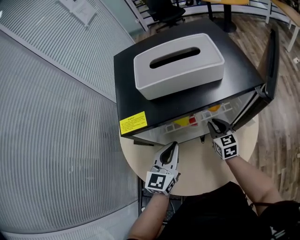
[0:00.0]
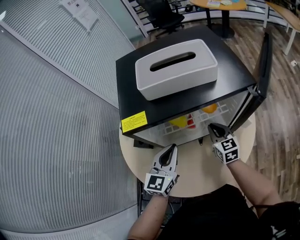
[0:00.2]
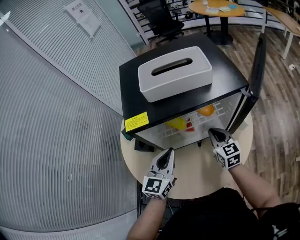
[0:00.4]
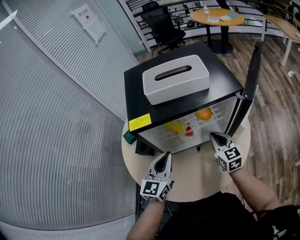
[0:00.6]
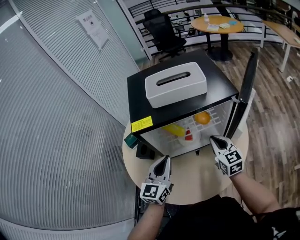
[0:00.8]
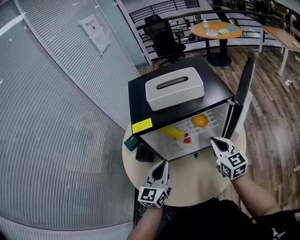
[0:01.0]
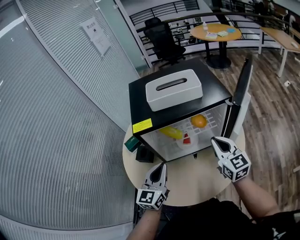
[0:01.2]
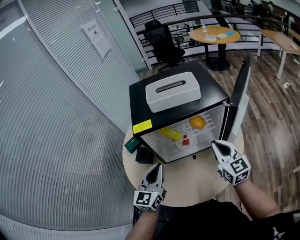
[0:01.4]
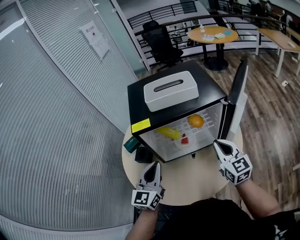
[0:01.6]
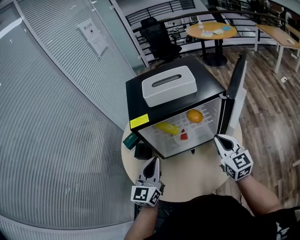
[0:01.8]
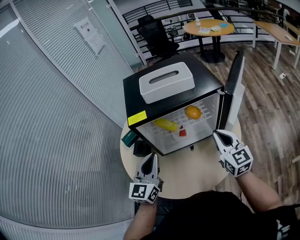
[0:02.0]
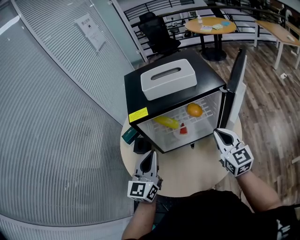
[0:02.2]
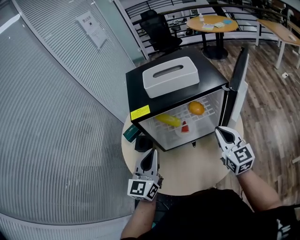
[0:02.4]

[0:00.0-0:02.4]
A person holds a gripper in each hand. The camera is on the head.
0:00.0 to 0:01.2: The right gripper goes roughly 25 cm upward and backward. The left gripper is displaced backward and upward by about 15 cm.
0:01.2 to 0:02.4: The left gripper travels upward by roughly 5 cm.

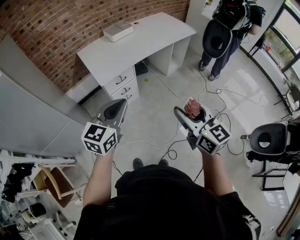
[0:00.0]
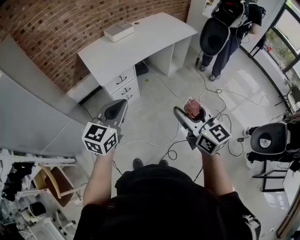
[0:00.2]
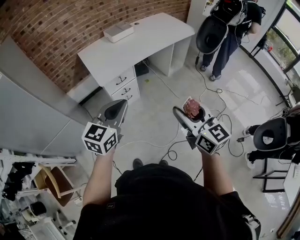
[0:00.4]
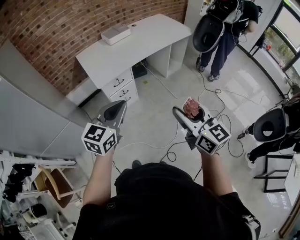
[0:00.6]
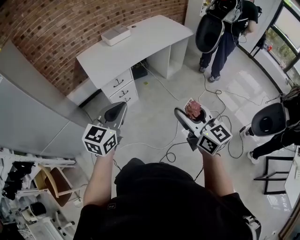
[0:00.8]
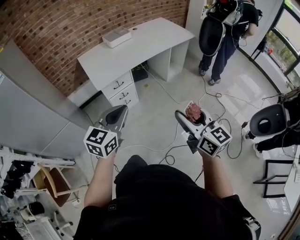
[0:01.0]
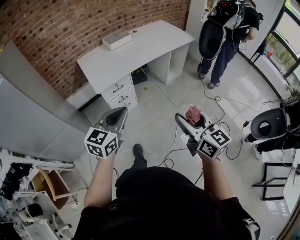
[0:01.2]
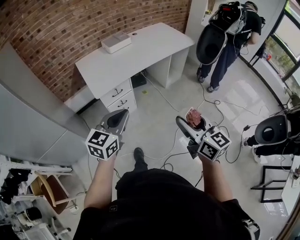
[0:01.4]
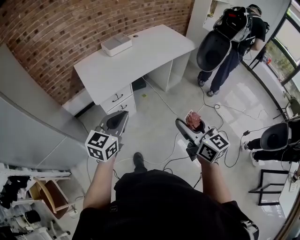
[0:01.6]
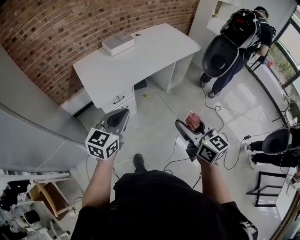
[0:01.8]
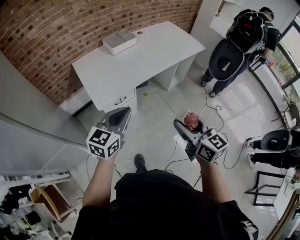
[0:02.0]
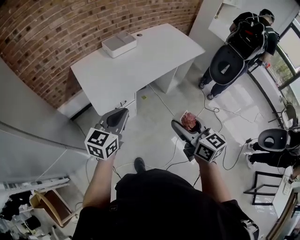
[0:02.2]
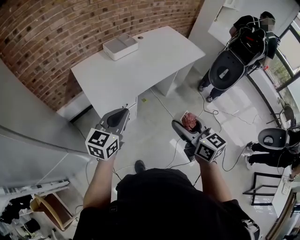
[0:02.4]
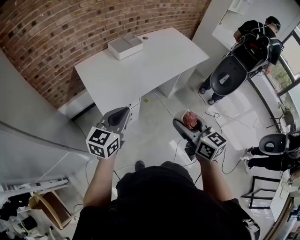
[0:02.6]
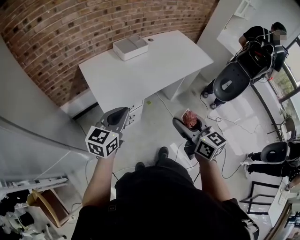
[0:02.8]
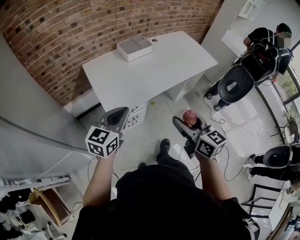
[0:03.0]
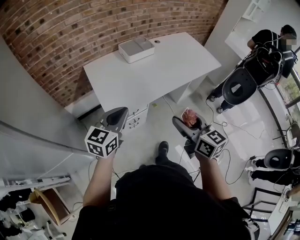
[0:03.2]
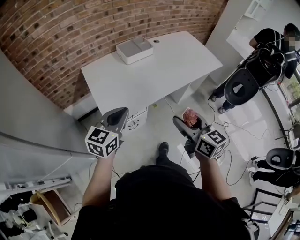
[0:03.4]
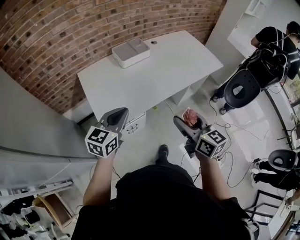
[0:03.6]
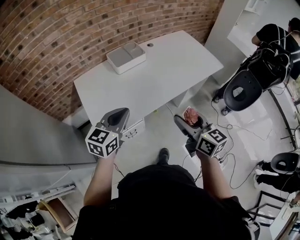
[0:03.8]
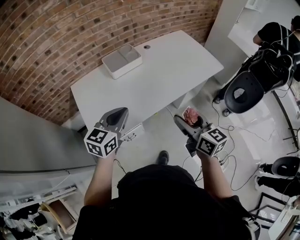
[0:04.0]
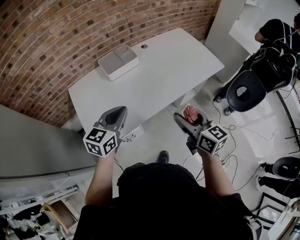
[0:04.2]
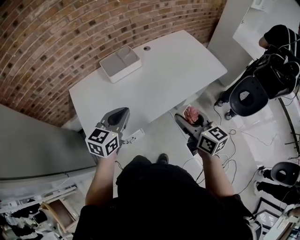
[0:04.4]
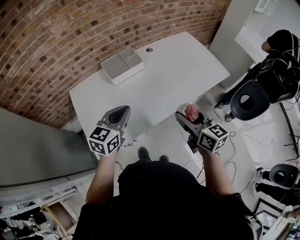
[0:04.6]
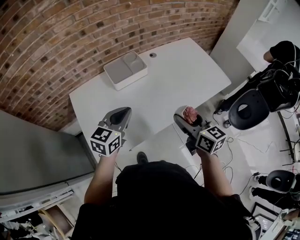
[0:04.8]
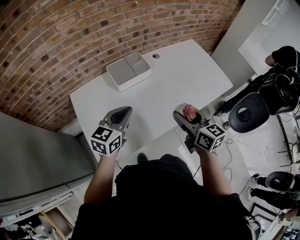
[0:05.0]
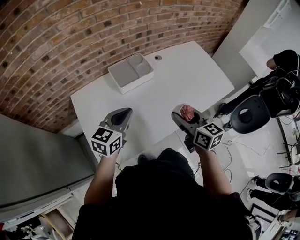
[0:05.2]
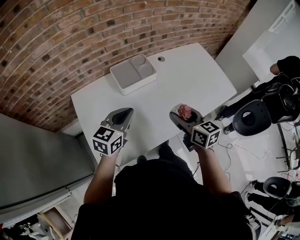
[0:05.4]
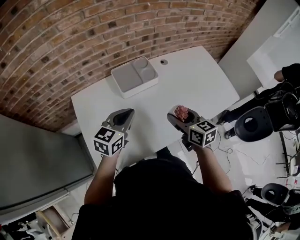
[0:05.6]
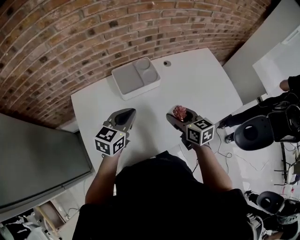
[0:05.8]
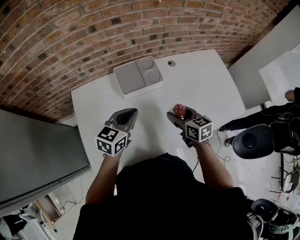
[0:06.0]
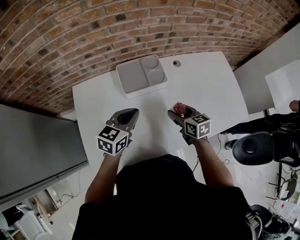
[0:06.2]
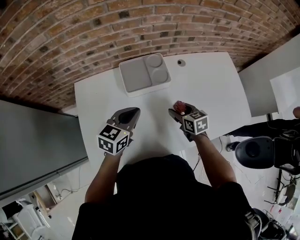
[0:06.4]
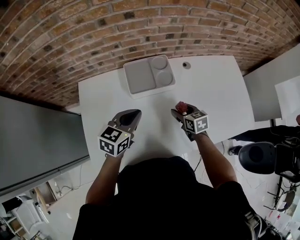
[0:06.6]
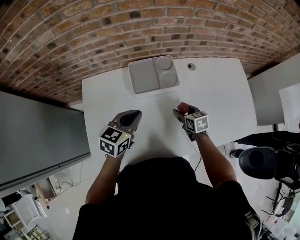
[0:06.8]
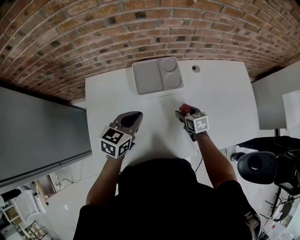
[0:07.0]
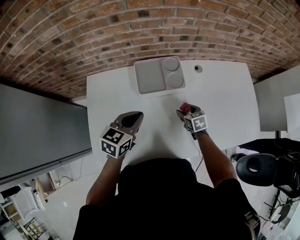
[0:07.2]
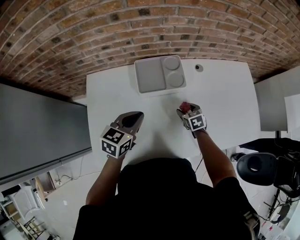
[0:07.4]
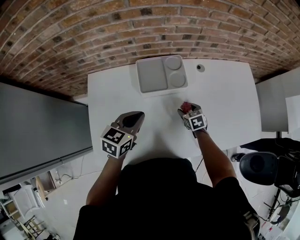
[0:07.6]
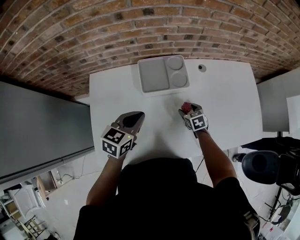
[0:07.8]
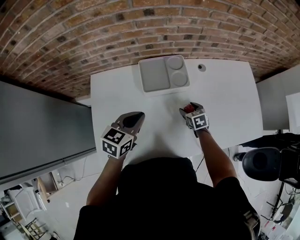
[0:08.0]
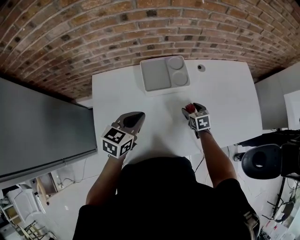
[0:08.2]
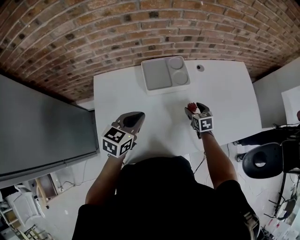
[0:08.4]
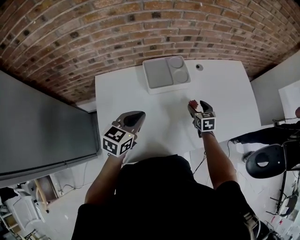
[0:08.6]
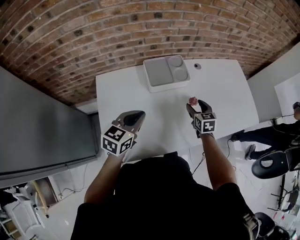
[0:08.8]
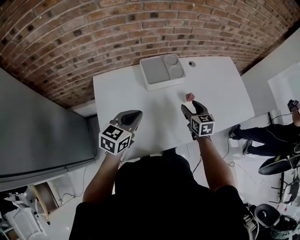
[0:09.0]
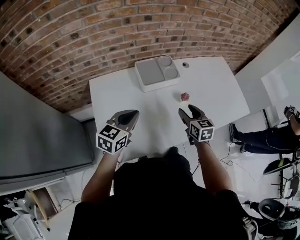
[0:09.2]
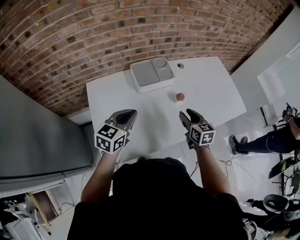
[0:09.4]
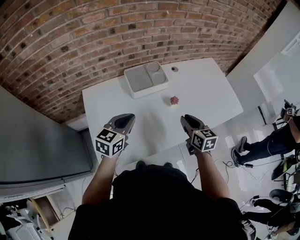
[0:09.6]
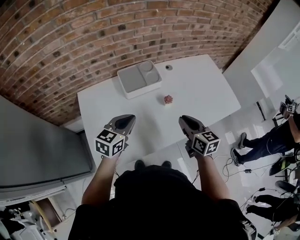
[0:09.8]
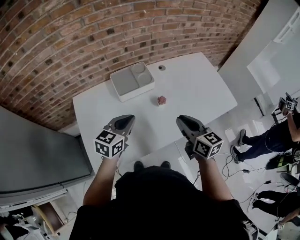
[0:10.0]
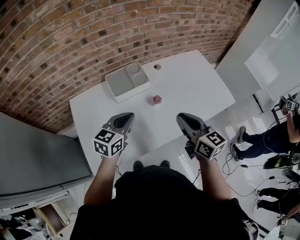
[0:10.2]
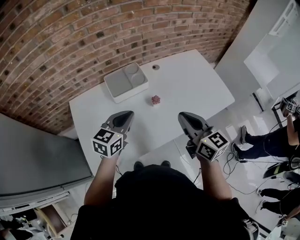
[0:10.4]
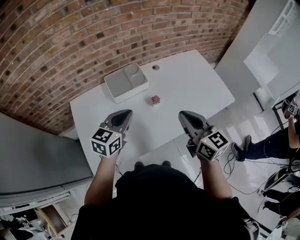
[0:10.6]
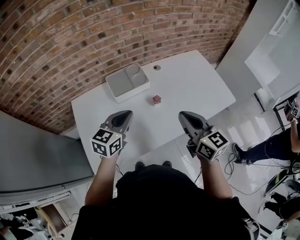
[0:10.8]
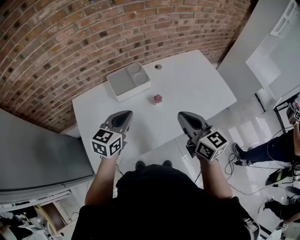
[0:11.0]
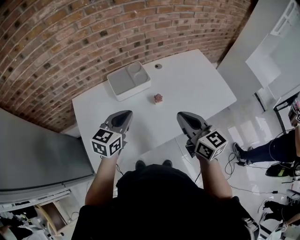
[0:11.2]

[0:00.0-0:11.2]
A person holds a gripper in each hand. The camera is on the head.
0:00.0 to 0:01.6: Both grippers move forward, some 10 cm.
0:01.6 to 0:03.2: The two grippers go some 25 cm forward and to the left.
0:03.2 to 0:04.8: The grippers both shift forward by roughly 30 cm.
0:04.8 to 0:06.4: The right gripper shifts roughly 30 cm forward and downward, and turns by about 30 degrees, while the left gripper heads forward and downward, covering roughly 20 cm.
0:06.4 to 0:08.0: The right gripper shifts approximately 10 cm downward.
0:08.0 to 0:09.6: The left gripper goes some 10 cm backward. Meanwhile the right gripper heads upward and backward, covering some 25 cm, changes its angle by approximately 30 degrees, and closes its fingers.
0:09.6 to 0:11.2: The right gripper is displaced upward by approximately 15 cm. Meanwhile the left gripper travels to the right by some 10 cm.

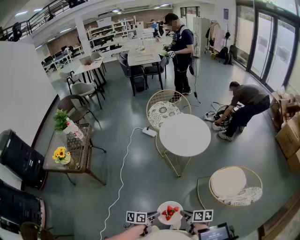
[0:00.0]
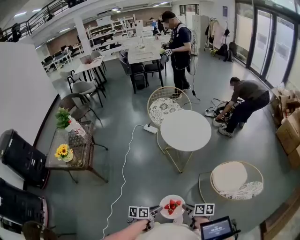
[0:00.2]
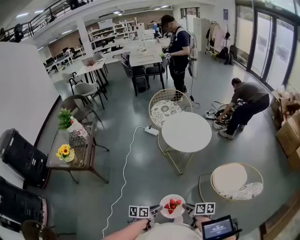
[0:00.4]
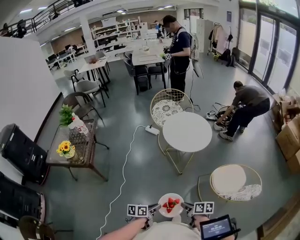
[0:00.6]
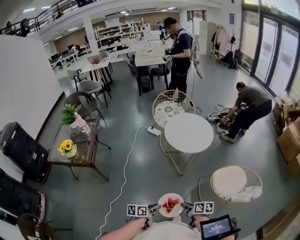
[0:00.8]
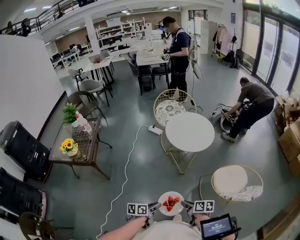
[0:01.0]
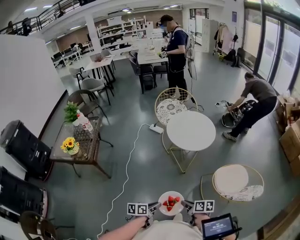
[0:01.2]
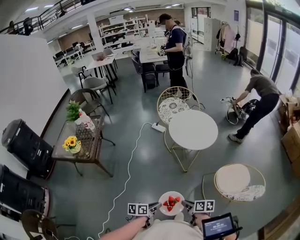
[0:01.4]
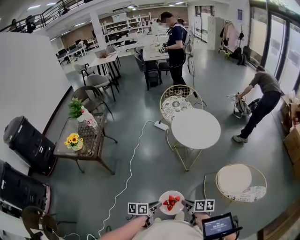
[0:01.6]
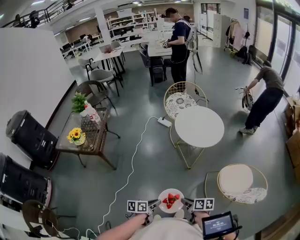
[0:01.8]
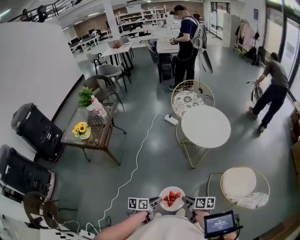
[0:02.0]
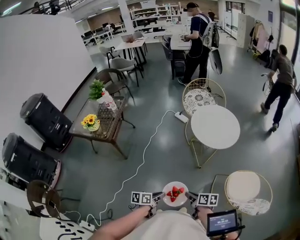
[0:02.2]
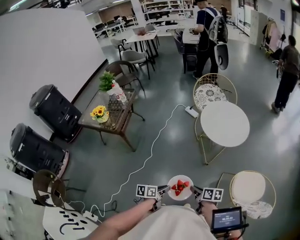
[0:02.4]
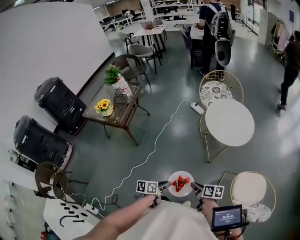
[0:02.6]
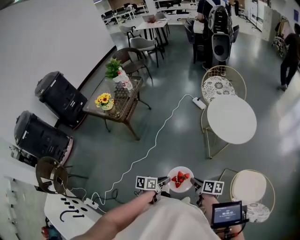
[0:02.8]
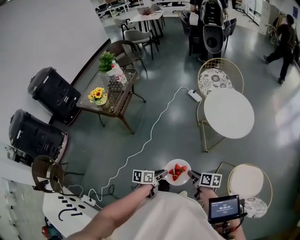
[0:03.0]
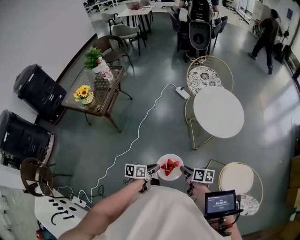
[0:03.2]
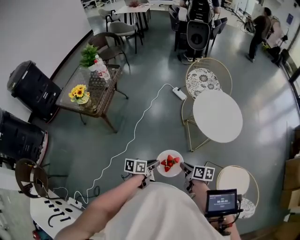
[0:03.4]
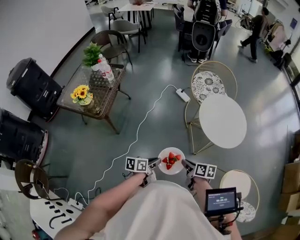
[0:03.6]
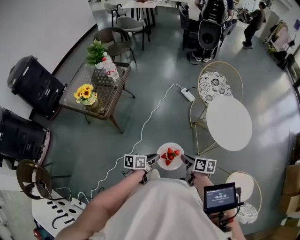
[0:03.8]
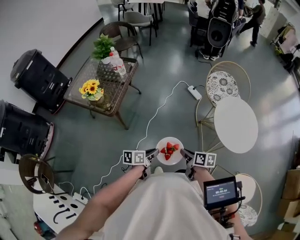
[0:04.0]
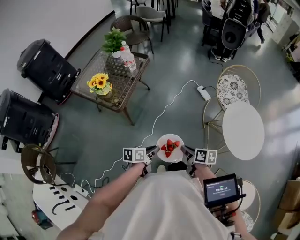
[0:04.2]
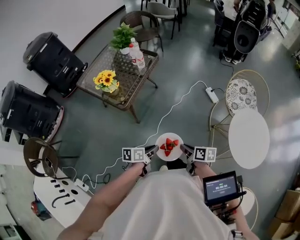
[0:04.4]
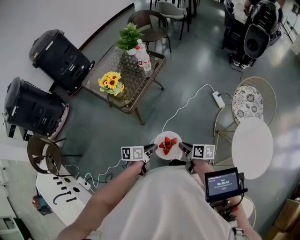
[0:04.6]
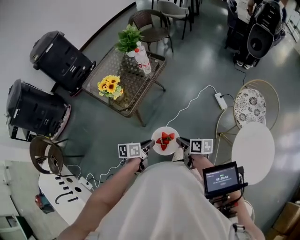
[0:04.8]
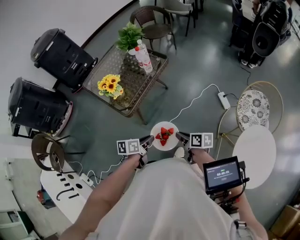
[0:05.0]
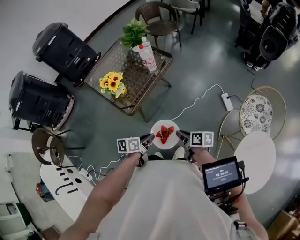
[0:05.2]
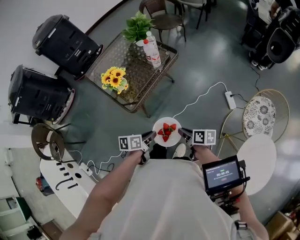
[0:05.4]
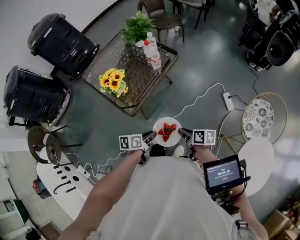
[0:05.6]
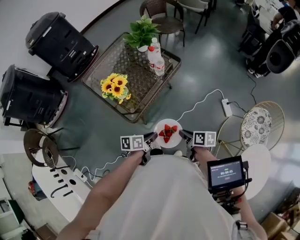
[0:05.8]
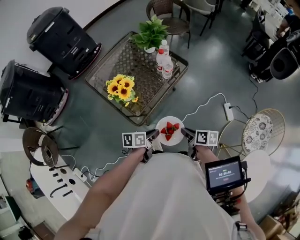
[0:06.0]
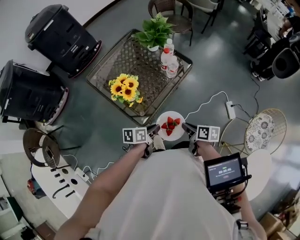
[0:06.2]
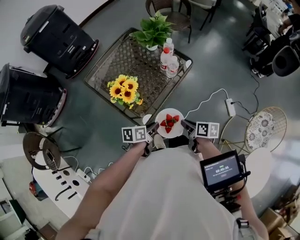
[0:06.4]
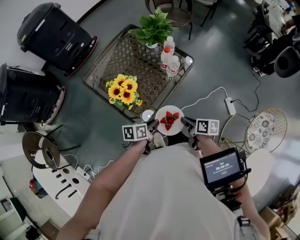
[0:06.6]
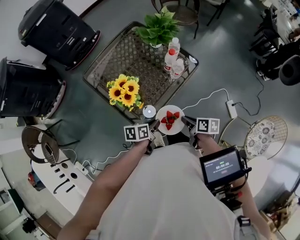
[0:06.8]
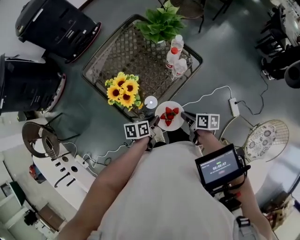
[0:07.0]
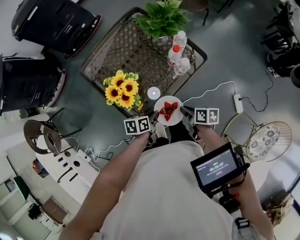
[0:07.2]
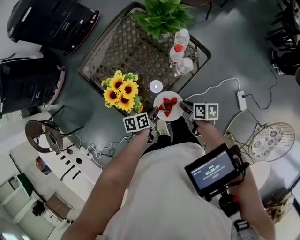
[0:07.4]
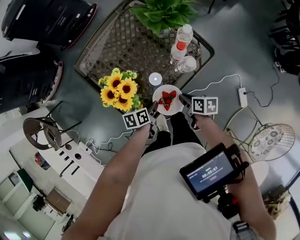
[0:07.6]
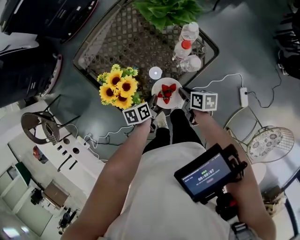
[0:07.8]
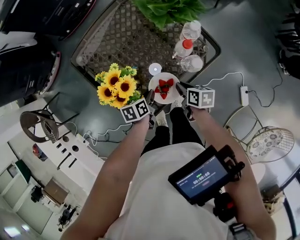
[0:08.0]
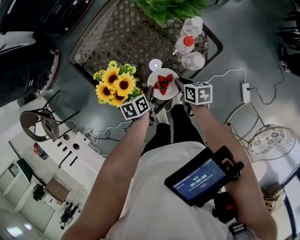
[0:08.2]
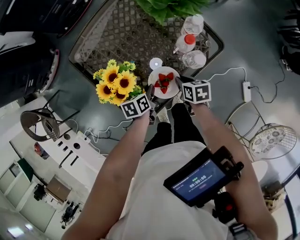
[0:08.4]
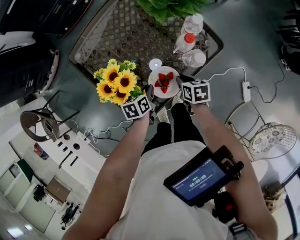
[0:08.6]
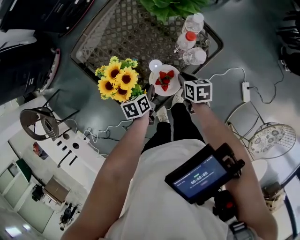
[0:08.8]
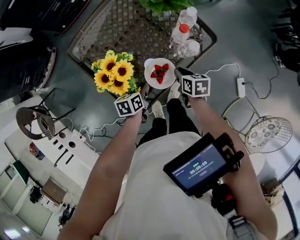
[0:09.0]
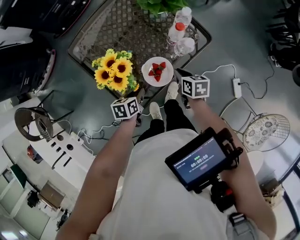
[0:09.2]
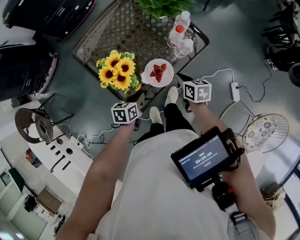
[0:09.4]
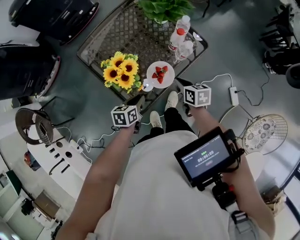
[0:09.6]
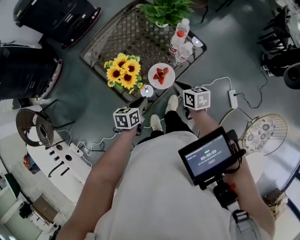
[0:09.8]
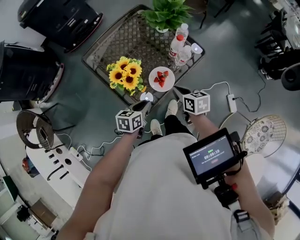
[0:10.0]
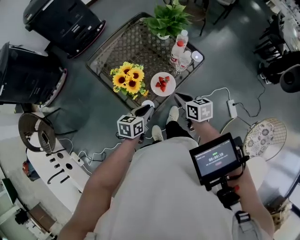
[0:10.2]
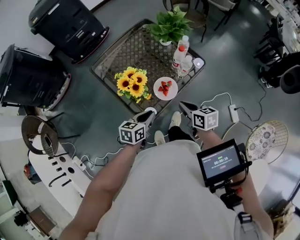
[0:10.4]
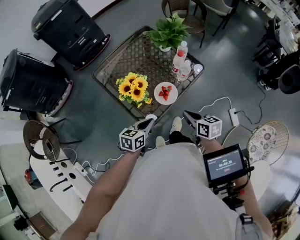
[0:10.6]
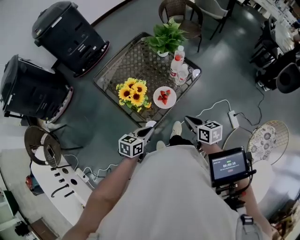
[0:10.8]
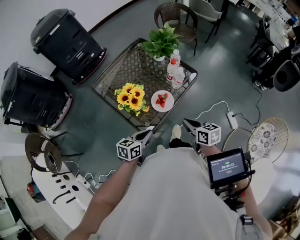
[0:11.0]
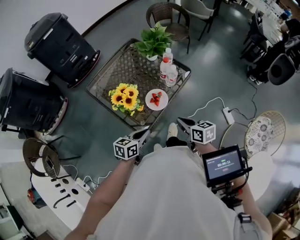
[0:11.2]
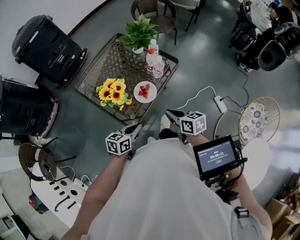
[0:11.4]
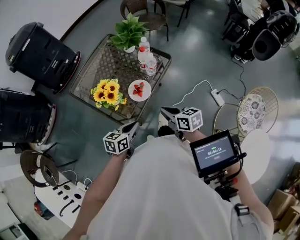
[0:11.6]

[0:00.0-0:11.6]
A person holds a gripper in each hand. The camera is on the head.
0:00.0 to 0:01.4: The grippers move only a little.
0:01.4 to 0:02.8: The right gripper goes roughly 10 cm forward. Meanwhile the left gripper travels forward by some 5 cm.
0:02.8 to 0:04.4: The grippers both shift forward and to the left by roughly 35 cm.
0:04.4 to 0:05.8: Both grippers move forward, roughly 25 cm.
0:05.8 to 0:07.2: The two grippers go roughly 20 cm forward.
0:07.2 to 0:08.8: The grippers both shift forward and downward by approximately 15 cm. The right gripper changes its angle by approximately 20 degrees.
0:08.8 to 0:10.2: The grippers both shift upward and backward by some 20 cm. The left gripper changes its angle by some 30 degrees.
0:10.2 to 0:11.6: Both grippers move backward, some 10 cm.
